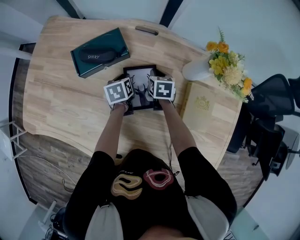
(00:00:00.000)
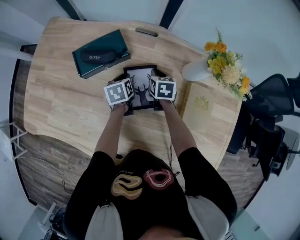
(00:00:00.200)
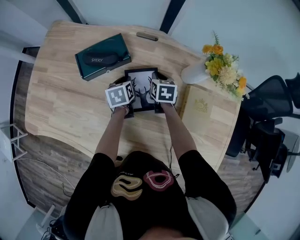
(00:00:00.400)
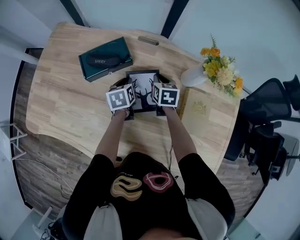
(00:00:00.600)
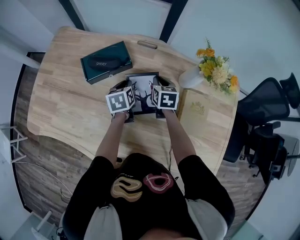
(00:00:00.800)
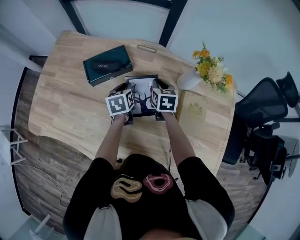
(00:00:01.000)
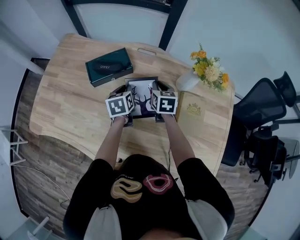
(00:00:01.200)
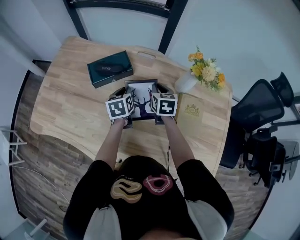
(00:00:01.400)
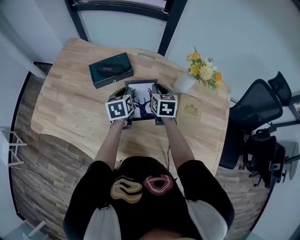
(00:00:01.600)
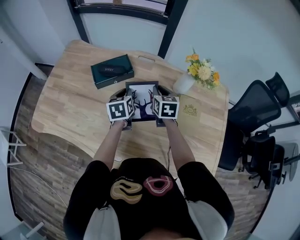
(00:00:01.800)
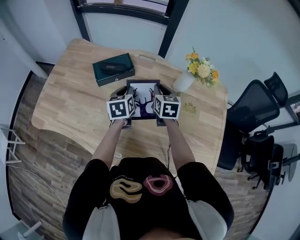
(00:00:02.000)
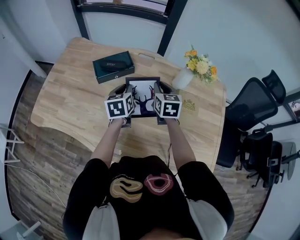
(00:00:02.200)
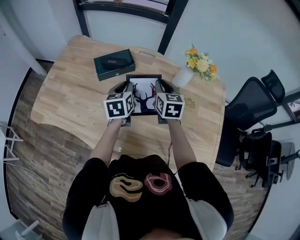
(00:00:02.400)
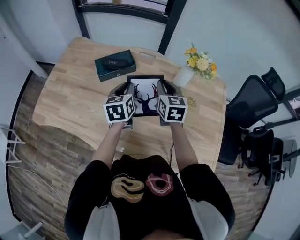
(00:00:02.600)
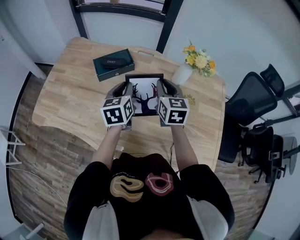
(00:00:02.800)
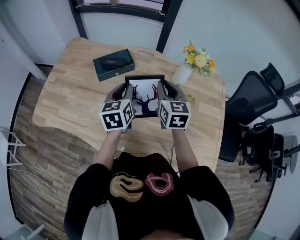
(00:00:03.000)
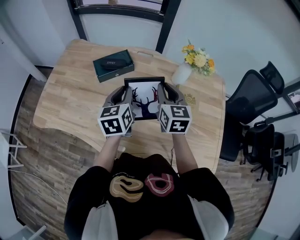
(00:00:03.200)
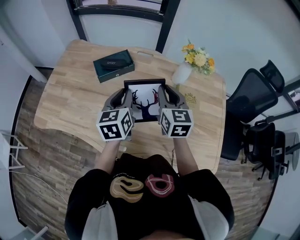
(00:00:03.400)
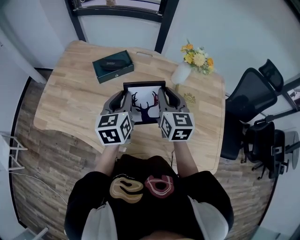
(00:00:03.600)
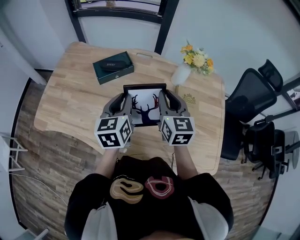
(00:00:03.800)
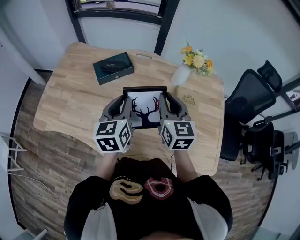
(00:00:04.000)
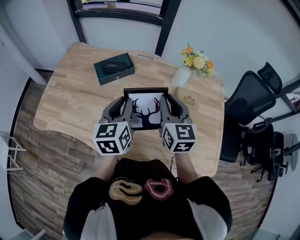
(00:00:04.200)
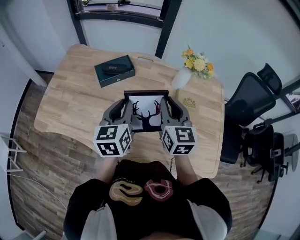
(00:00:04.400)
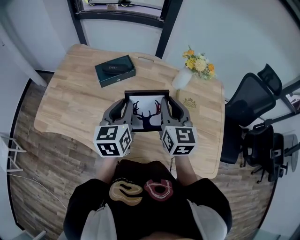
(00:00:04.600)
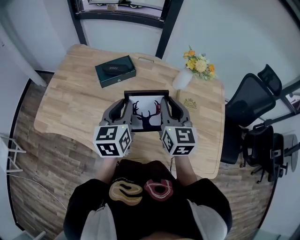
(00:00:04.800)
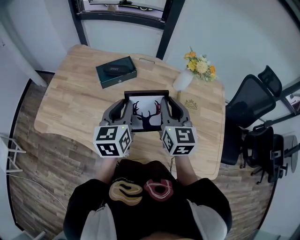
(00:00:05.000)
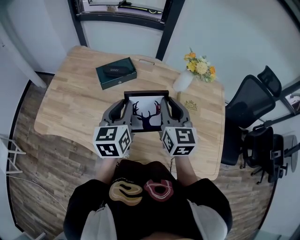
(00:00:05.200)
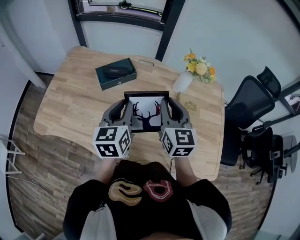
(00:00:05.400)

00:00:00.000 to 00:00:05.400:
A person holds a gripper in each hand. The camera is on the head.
00:00:00.000 to 00:00:01.400: Both grippers move upward and backward, roughly 15 cm.
00:00:01.400 to 00:00:02.800: Both grippers travel together upward and backward, approximately 15 cm.
00:00:02.800 to 00:00:04.000: The right gripper goes about 10 cm backward. Meanwhile the left gripper heads backward and upward, covering some 10 cm.
00:00:04.000 to 00:00:05.400: The grippers move only a little.

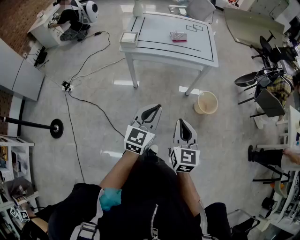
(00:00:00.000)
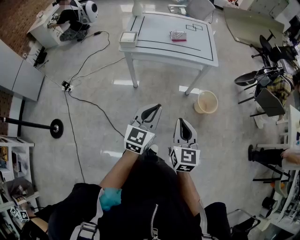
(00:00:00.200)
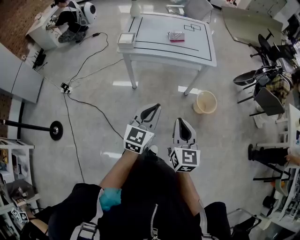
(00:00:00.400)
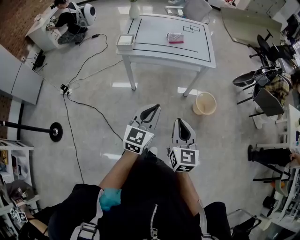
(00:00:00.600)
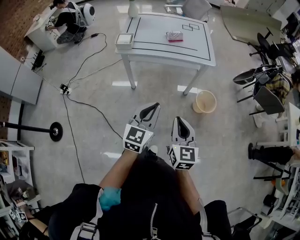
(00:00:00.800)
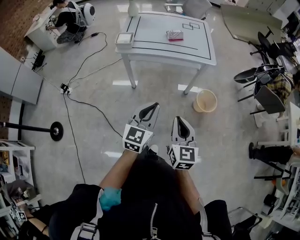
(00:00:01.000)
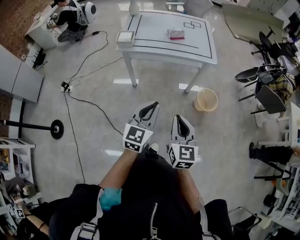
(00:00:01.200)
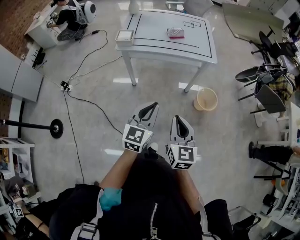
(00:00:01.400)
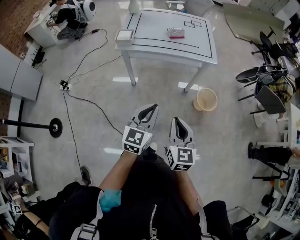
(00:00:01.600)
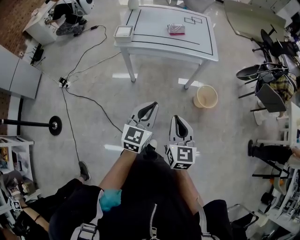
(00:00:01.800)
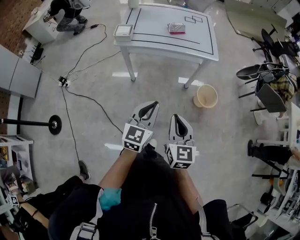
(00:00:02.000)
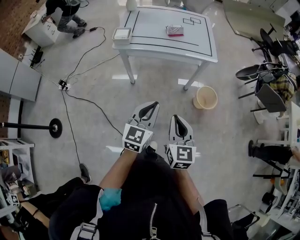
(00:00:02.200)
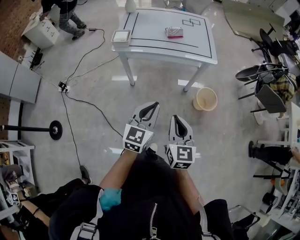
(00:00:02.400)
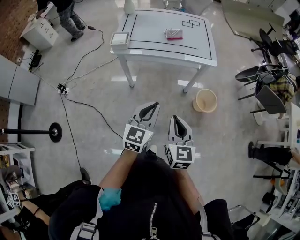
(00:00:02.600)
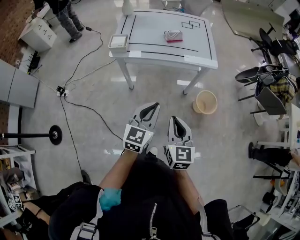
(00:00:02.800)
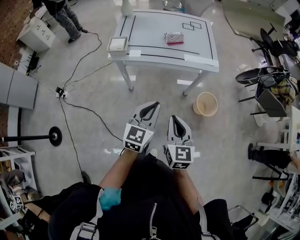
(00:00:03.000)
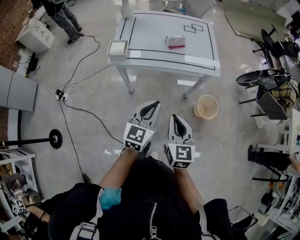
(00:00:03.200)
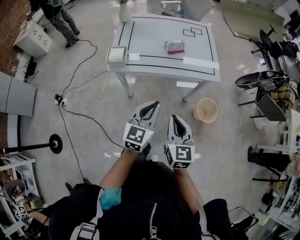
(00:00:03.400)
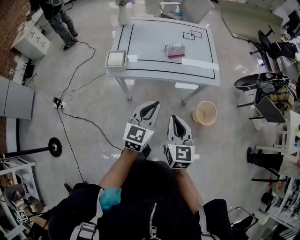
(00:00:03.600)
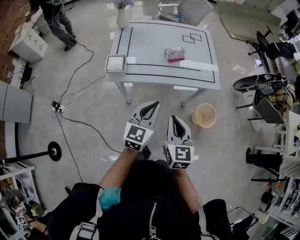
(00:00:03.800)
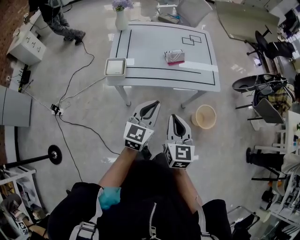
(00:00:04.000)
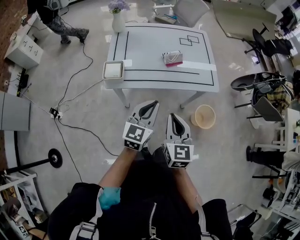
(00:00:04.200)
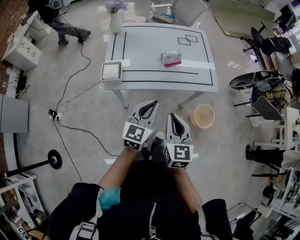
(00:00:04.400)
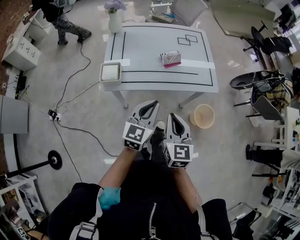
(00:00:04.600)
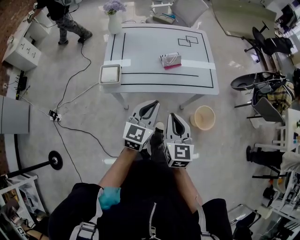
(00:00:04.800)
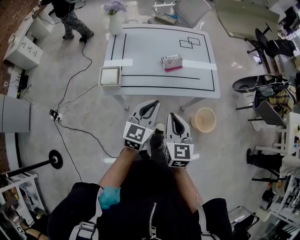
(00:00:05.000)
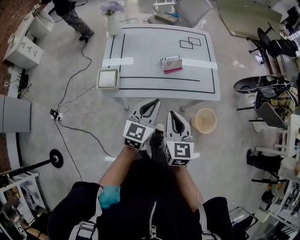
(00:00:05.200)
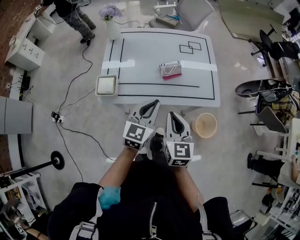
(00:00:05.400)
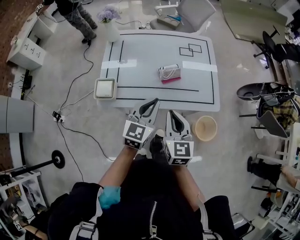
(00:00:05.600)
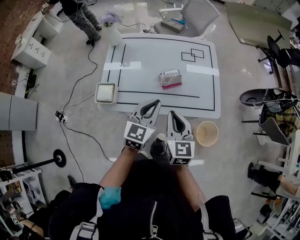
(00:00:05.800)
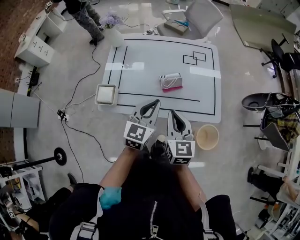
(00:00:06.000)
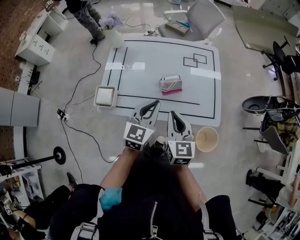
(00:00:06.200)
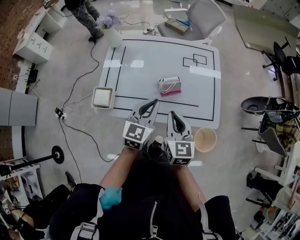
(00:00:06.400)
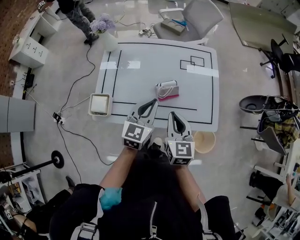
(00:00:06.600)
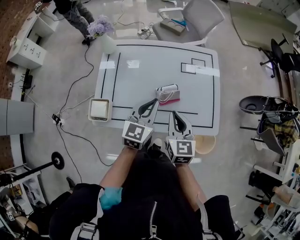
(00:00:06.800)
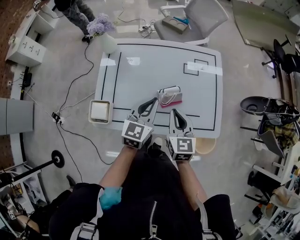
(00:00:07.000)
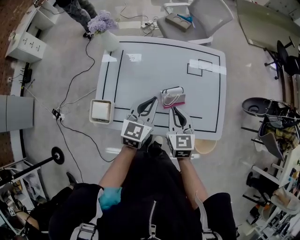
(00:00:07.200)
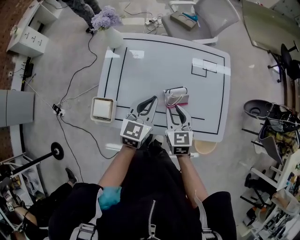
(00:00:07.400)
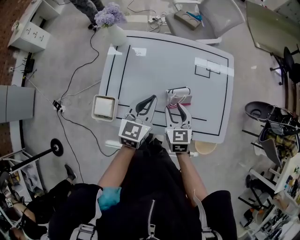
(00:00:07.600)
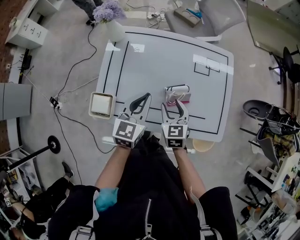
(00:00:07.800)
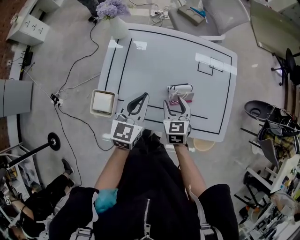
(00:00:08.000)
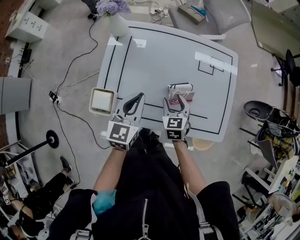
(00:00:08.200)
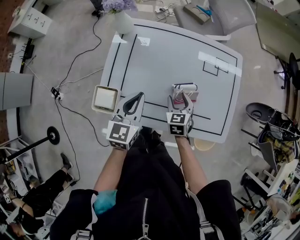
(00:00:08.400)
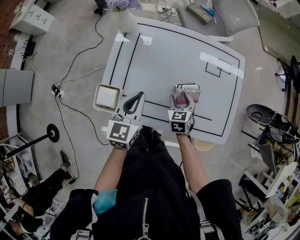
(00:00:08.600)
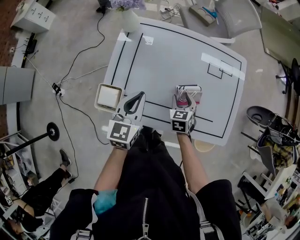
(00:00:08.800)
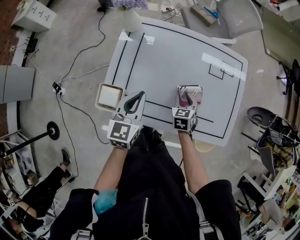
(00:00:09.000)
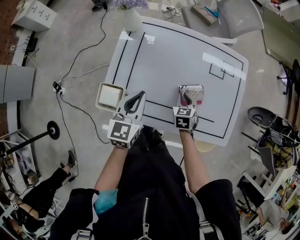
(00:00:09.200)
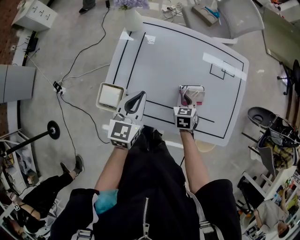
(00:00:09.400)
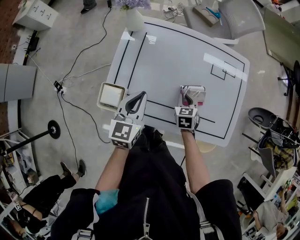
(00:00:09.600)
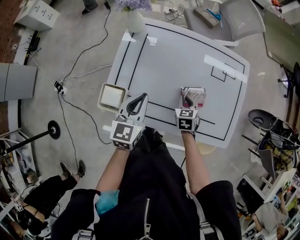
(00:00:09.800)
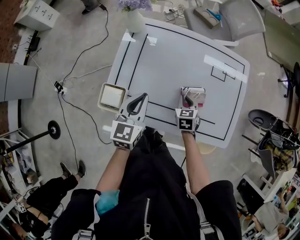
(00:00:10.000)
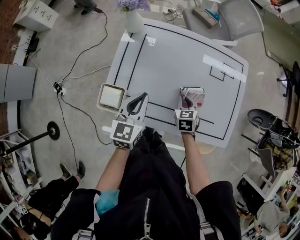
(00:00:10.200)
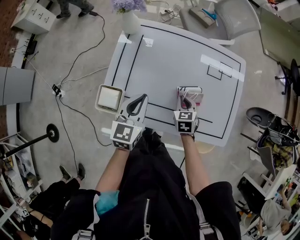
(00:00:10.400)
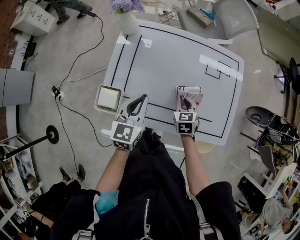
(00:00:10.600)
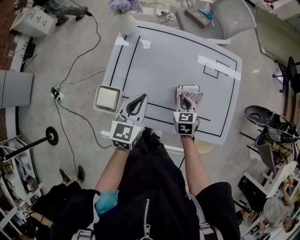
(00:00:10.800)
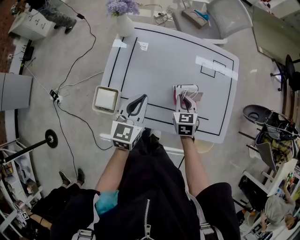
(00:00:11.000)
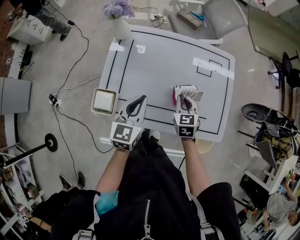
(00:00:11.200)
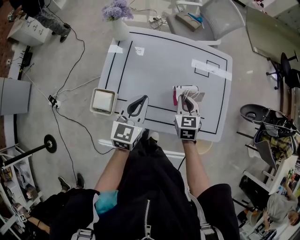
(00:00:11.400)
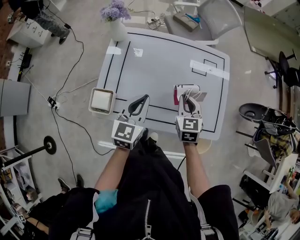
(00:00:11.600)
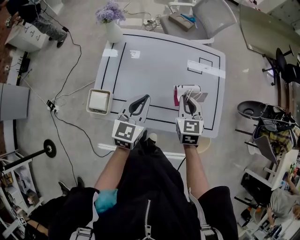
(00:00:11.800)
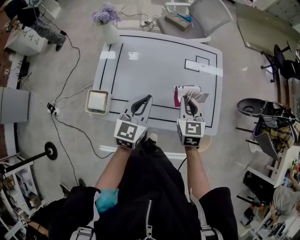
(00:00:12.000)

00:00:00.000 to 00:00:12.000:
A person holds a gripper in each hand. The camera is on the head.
00:00:00.000 to 00:00:01.600: There are only small adjustments of the grippers.
00:00:01.600 to 00:00:03.000: Both grippers move forward, about 15 cm.
00:00:03.000 to 00:00:04.400: Both grippers travel together forward and to the left, approximately 20 cm.
00:00:04.400 to 00:00:06.000: Both grippers travel together forward, roughly 20 cm.
00:00:06.000 to 00:00:07.600: The right gripper shifts approximately 20 cm forward and downward, and opens its fingers, while the left gripper goes roughly 15 cm forward and to the left.
00:00:07.600 to 00:00:09.000: The left gripper moves to the left, roughly 10 cm. Meanwhile the right gripper travels downward by approximately 10 cm.
00:00:09.000 to 00:00:10.400: The right gripper closes its fingers.
00:00:10.400 to 00:00:12.000: The right gripper heads upward and to the right, covering about 20 cm. The left gripper heads to the right, covering about 10 cm.

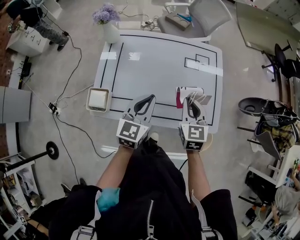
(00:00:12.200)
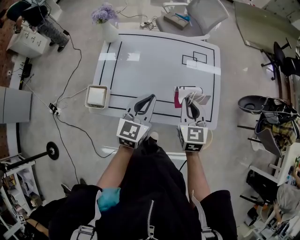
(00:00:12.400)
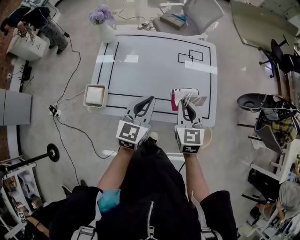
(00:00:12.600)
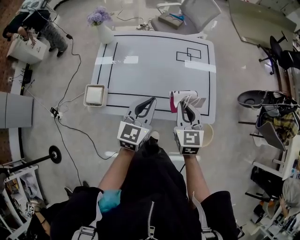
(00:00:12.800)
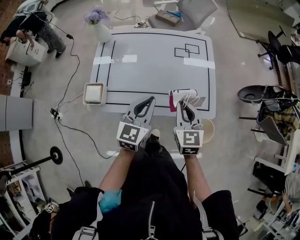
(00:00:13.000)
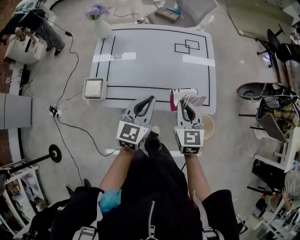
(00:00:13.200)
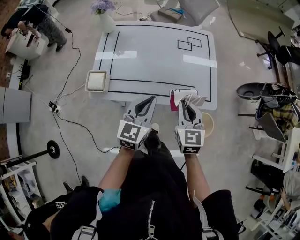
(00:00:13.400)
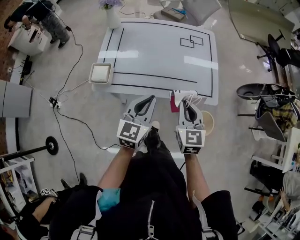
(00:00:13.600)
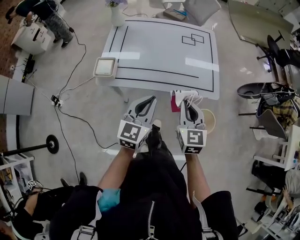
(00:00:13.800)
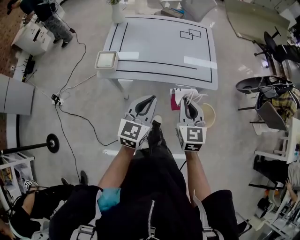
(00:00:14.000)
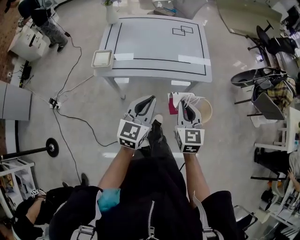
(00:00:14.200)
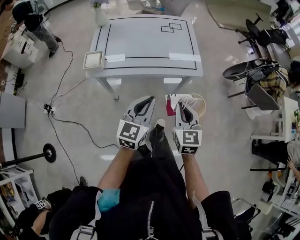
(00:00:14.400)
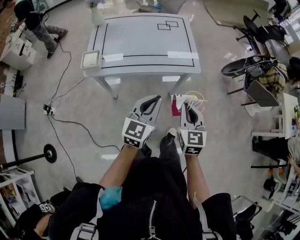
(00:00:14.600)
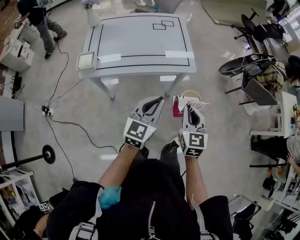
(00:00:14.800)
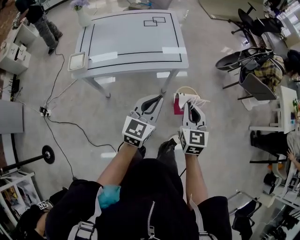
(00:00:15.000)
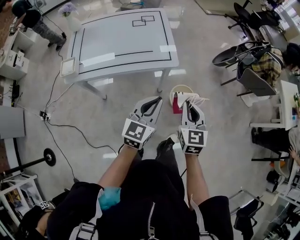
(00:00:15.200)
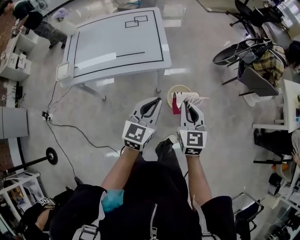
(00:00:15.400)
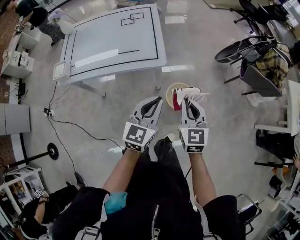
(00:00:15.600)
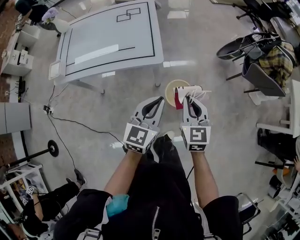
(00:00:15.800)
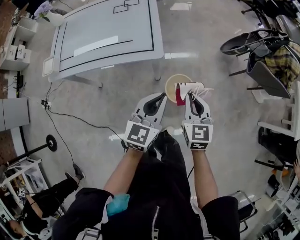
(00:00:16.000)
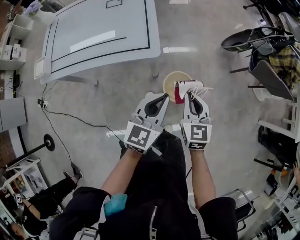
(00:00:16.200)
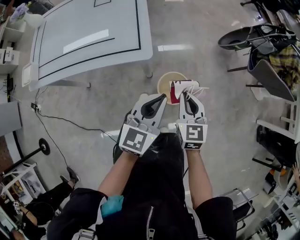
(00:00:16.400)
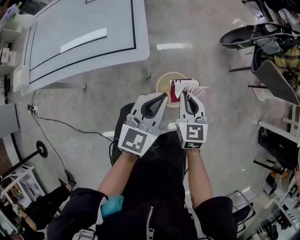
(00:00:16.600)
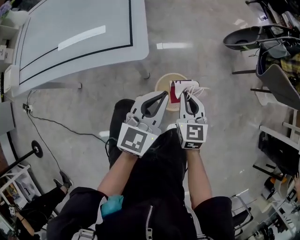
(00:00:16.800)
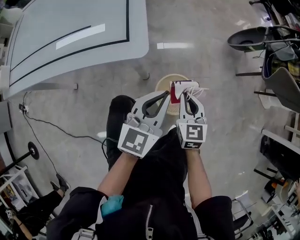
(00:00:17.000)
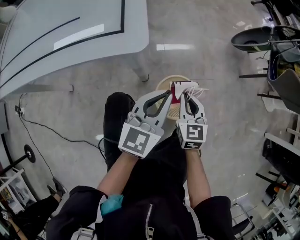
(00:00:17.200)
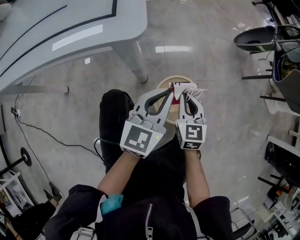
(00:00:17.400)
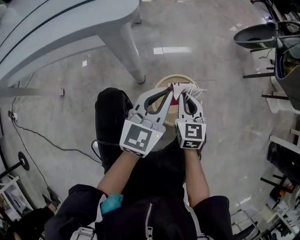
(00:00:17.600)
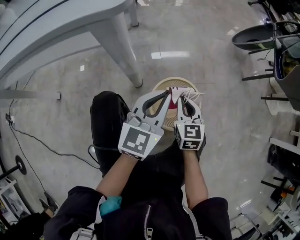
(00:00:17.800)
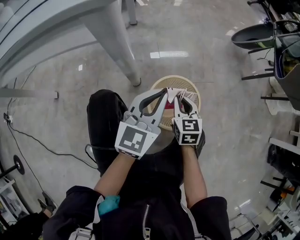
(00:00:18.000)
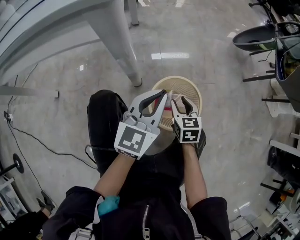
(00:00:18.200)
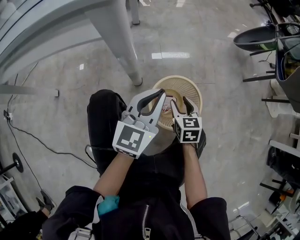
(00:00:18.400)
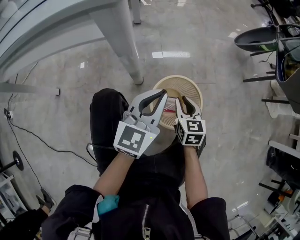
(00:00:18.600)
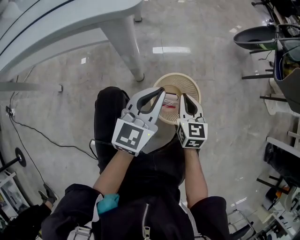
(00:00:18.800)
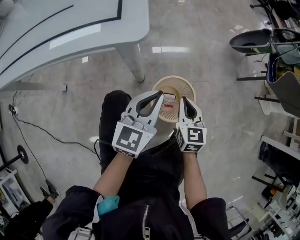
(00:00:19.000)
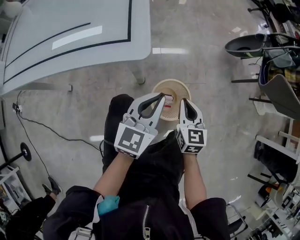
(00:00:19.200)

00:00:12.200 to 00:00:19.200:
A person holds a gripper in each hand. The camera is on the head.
00:00:12.200 to 00:00:13.600: The grippers both shift backward by some 20 cm.
00:00:13.600 to 00:00:15.000: The two grippers go about 25 cm to the right and backward.
00:00:15.000 to 00:00:16.400: The left gripper goes about 35 cm to the right, forward and downward; the right gripper travels downward, to the right and forward by about 35 cm.
00:00:16.400 to 00:00:17.800: The grippers both shift downward by approximately 40 cm.
00:00:17.800 to 00:00:19.200: Both grippers move upward, roughly 20 cm. The right gripper opens, then closes again.
